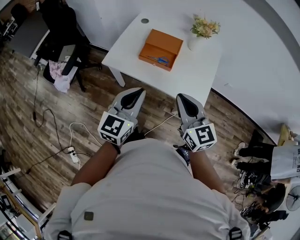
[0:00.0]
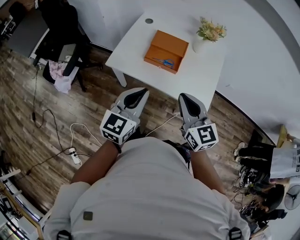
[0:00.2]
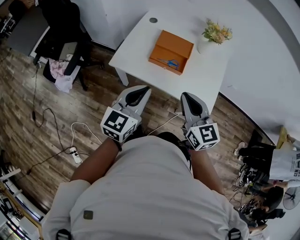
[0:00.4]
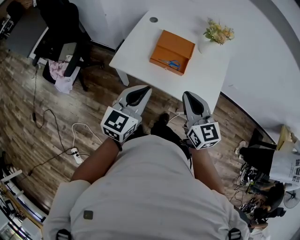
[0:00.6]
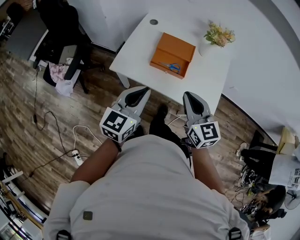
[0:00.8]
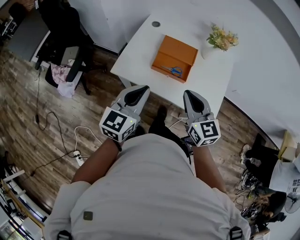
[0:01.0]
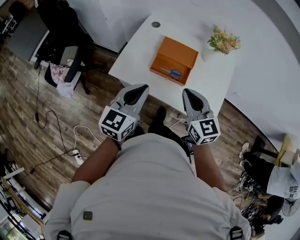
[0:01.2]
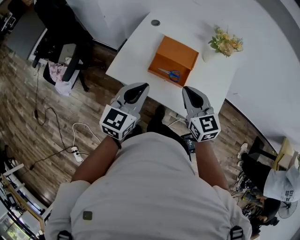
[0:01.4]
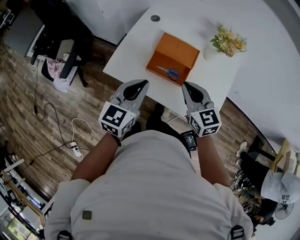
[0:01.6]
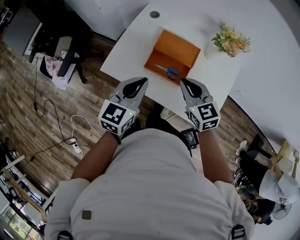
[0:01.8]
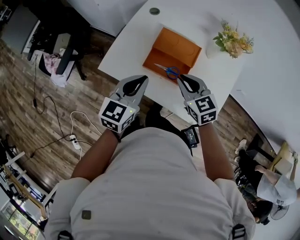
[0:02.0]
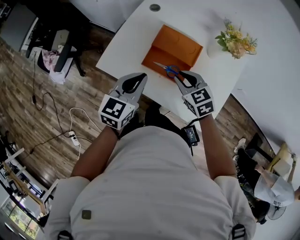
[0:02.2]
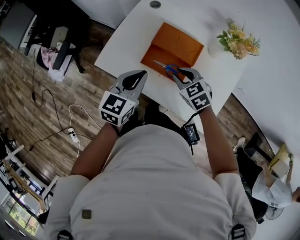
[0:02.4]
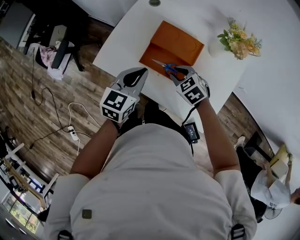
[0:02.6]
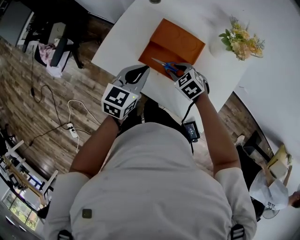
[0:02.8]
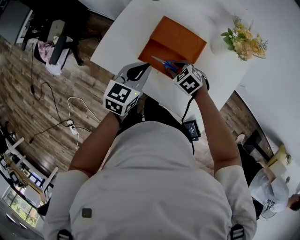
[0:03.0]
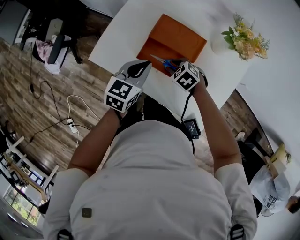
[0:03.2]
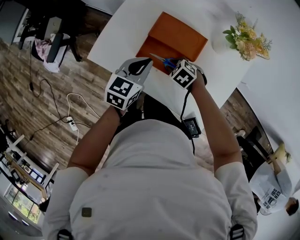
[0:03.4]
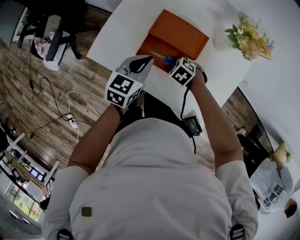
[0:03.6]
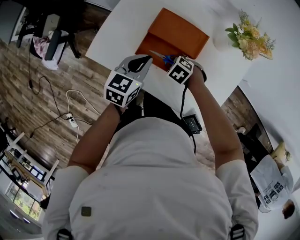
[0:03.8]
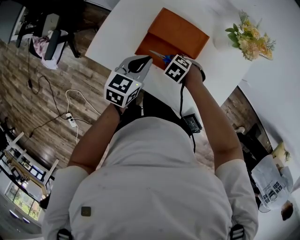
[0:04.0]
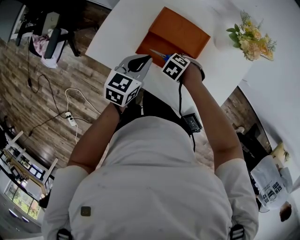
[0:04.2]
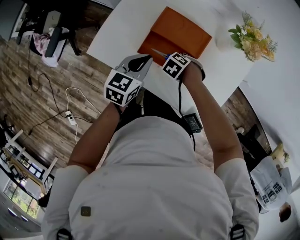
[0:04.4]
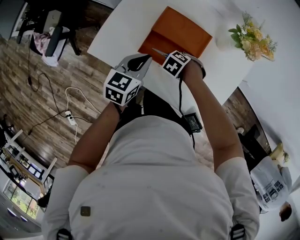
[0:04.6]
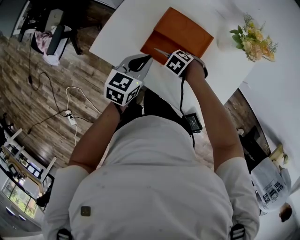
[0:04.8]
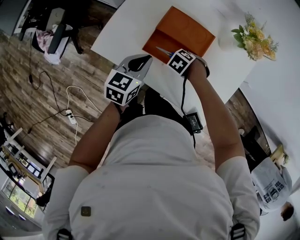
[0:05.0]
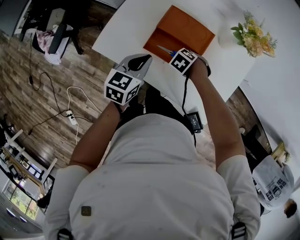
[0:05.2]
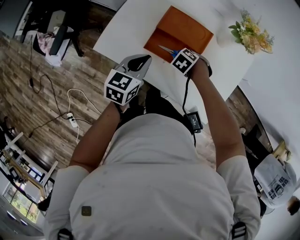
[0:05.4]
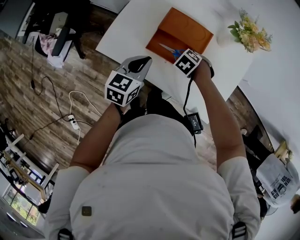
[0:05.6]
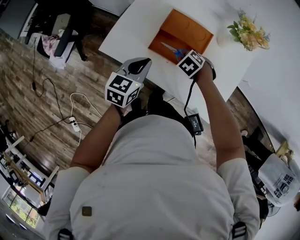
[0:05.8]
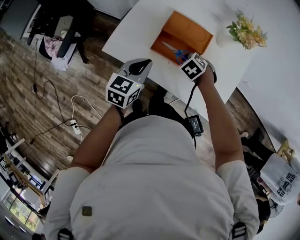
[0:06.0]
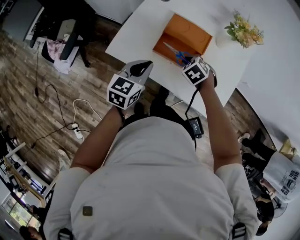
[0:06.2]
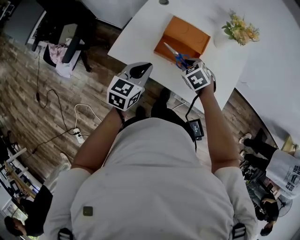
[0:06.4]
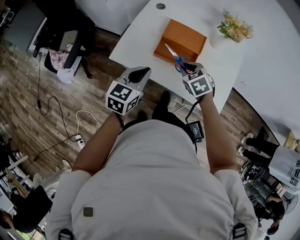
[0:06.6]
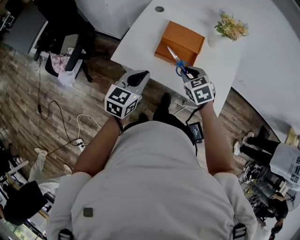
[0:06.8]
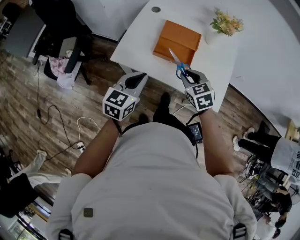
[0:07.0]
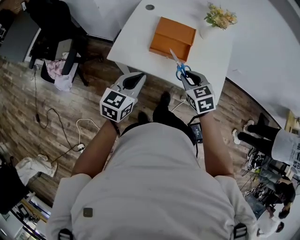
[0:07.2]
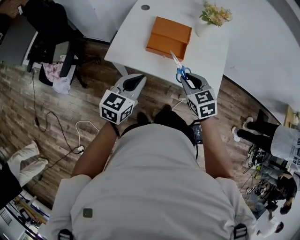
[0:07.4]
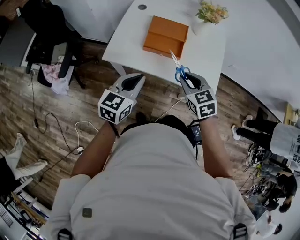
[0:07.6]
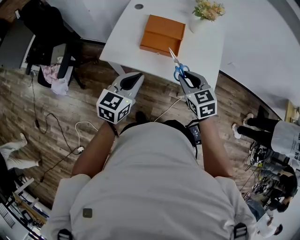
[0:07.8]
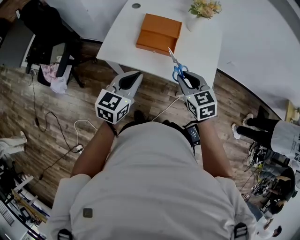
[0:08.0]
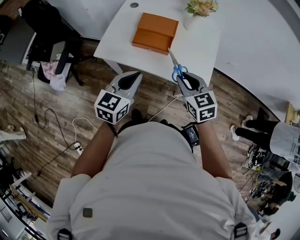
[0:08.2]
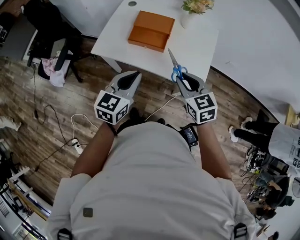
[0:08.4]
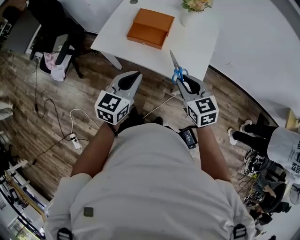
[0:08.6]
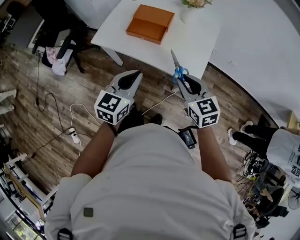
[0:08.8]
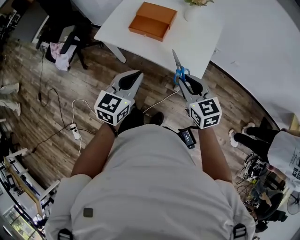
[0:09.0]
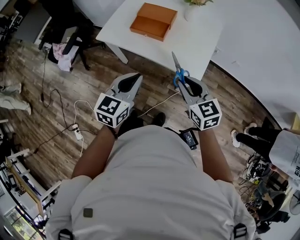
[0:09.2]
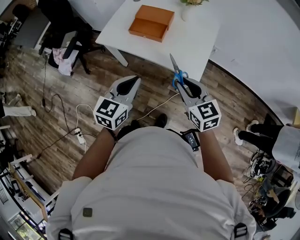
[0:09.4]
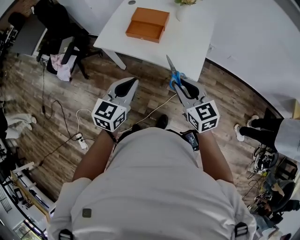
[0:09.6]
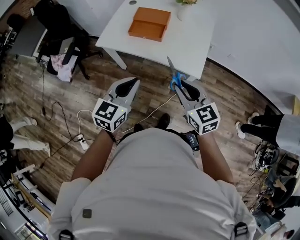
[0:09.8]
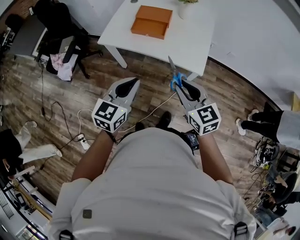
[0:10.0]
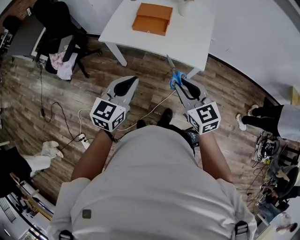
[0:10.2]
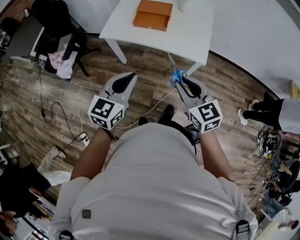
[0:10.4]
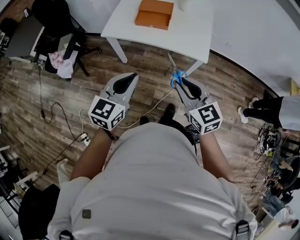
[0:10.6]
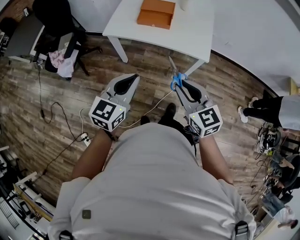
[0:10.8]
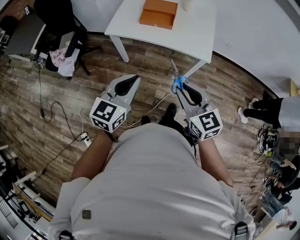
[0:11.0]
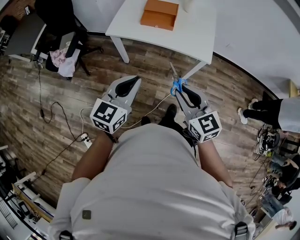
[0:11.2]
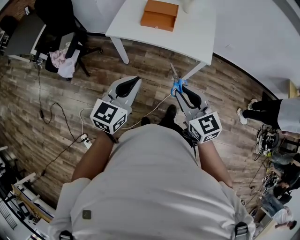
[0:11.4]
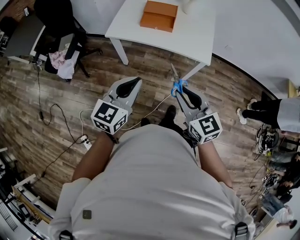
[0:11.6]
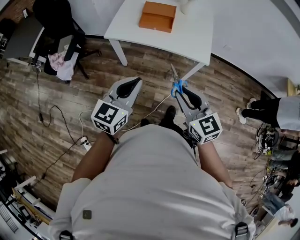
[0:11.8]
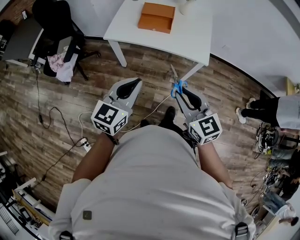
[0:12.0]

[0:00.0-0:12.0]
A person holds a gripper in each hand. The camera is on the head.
0:00.0 to 0:01.6: The two grippers go roughly 20 cm forward.
0:01.6 to 0:03.0: The left gripper goes about 15 cm downward, forward and to the right. The right gripper travels downward by about 25 cm, angles its fingers downward, by about 40 degrees, and opens up.
0:03.0 to 0:04.4: The right gripper is displaced downward by approximately 5 cm, and changes its angle by some 20 degrees.
0:04.4 to 0:06.0: The left gripper shifts by some 10 cm, while the right gripper heads upward, covering roughly 10 cm.
0:06.0 to 0:07.6: The right gripper moves approximately 30 cm, and tilts its fingers some 30 degrees upward. The left gripper moves approximately 20 cm.
0:07.6 to 0:09.0: The grippers both shift to the right and backward by some 20 cm.
0:09.0 to 0:10.4: The right gripper travels backward and to the left by approximately 20 cm. Meanwhile the left gripper is displaced to the left and backward by approximately 15 cm.
0:10.4 to 0:12.0: The right gripper shifts about 10 cm backward and to the left. The left gripper moves approximately 5 cm.

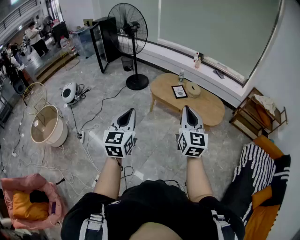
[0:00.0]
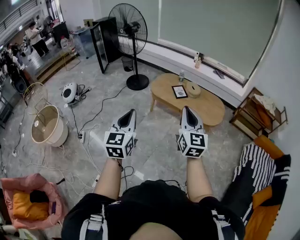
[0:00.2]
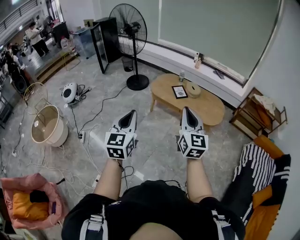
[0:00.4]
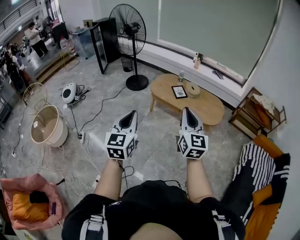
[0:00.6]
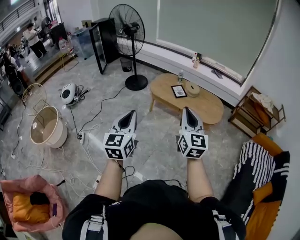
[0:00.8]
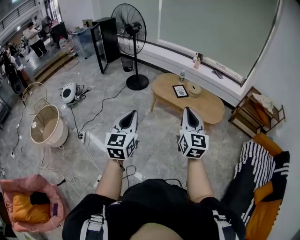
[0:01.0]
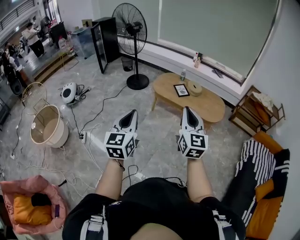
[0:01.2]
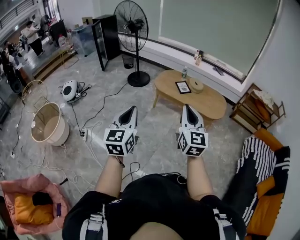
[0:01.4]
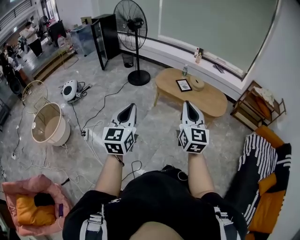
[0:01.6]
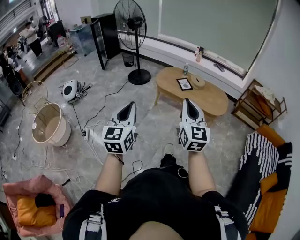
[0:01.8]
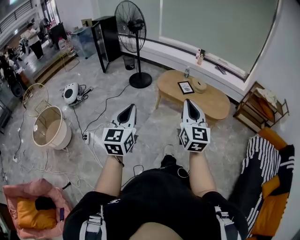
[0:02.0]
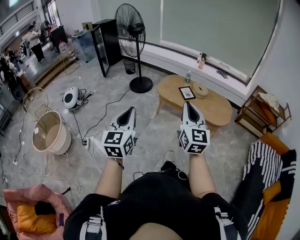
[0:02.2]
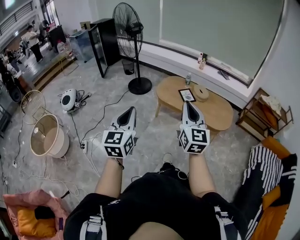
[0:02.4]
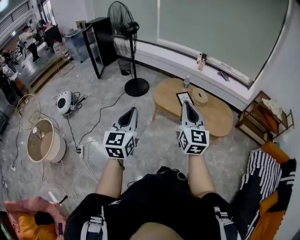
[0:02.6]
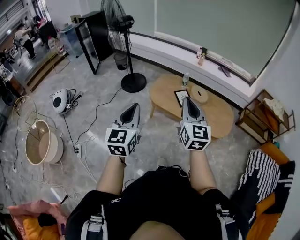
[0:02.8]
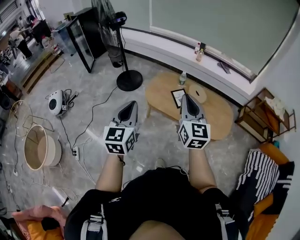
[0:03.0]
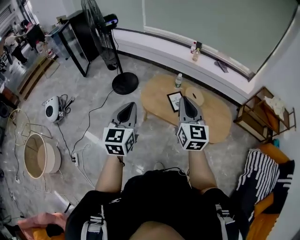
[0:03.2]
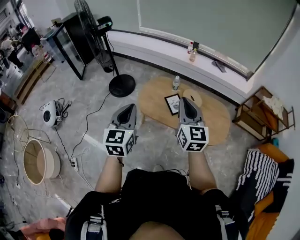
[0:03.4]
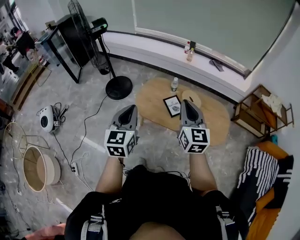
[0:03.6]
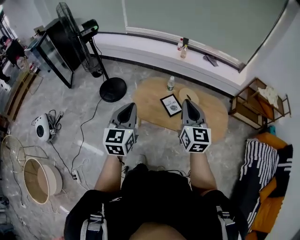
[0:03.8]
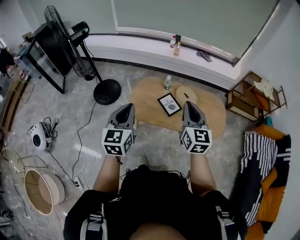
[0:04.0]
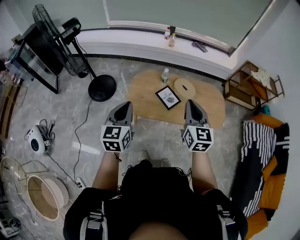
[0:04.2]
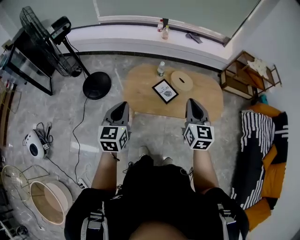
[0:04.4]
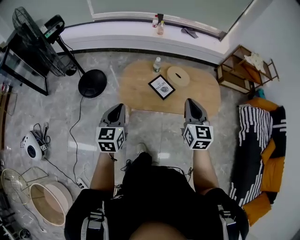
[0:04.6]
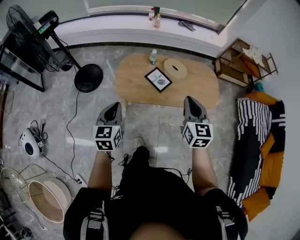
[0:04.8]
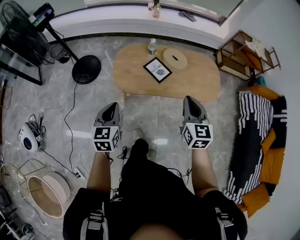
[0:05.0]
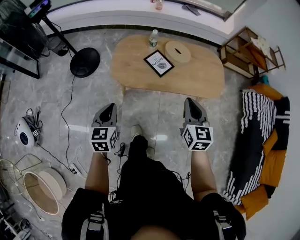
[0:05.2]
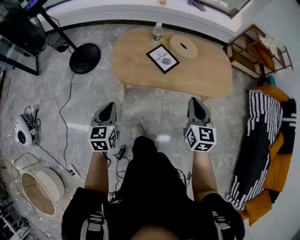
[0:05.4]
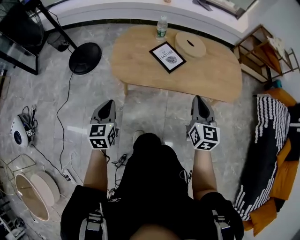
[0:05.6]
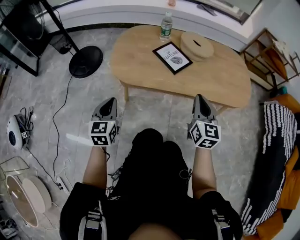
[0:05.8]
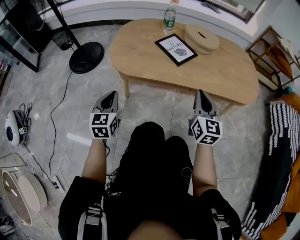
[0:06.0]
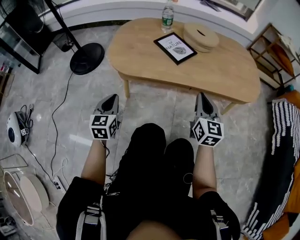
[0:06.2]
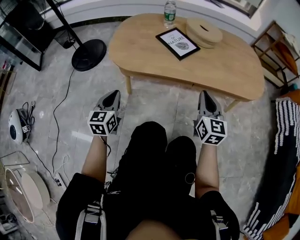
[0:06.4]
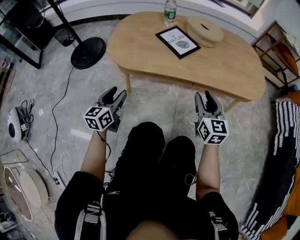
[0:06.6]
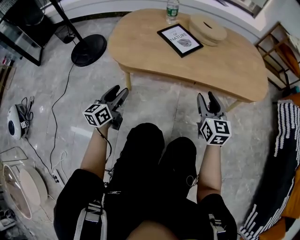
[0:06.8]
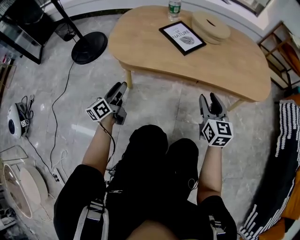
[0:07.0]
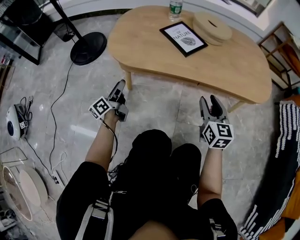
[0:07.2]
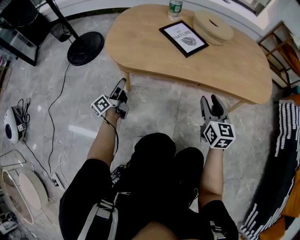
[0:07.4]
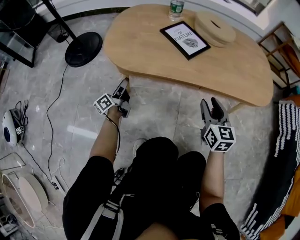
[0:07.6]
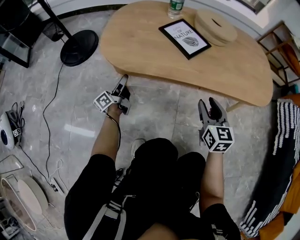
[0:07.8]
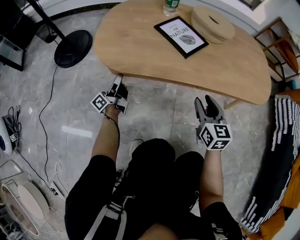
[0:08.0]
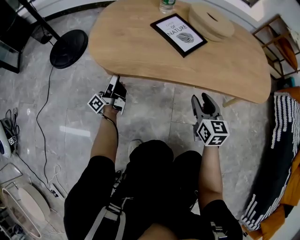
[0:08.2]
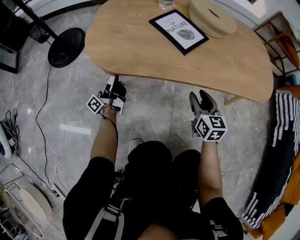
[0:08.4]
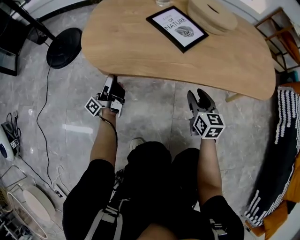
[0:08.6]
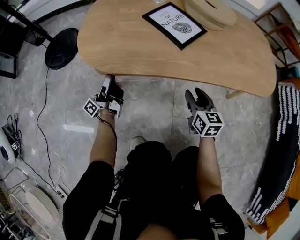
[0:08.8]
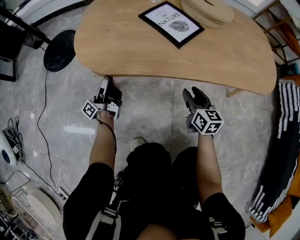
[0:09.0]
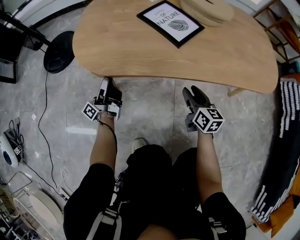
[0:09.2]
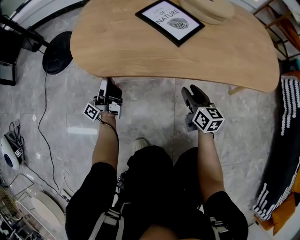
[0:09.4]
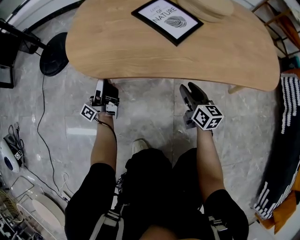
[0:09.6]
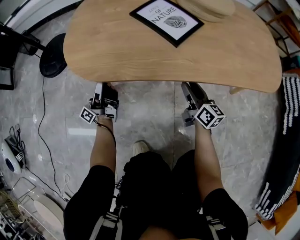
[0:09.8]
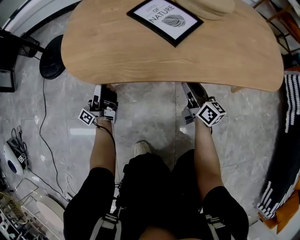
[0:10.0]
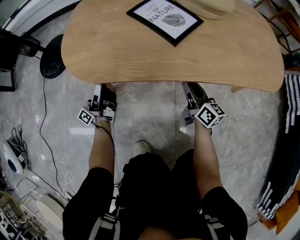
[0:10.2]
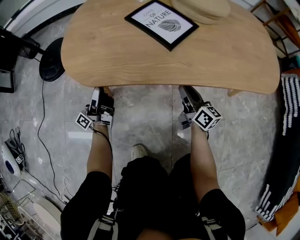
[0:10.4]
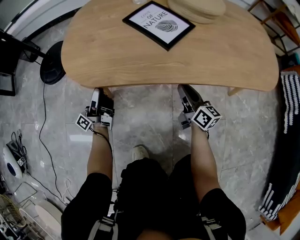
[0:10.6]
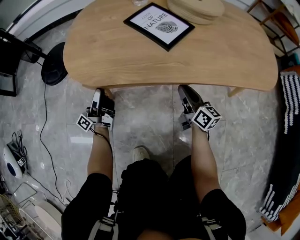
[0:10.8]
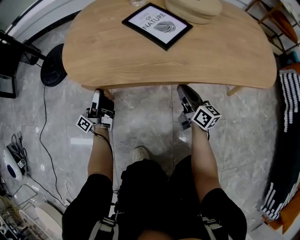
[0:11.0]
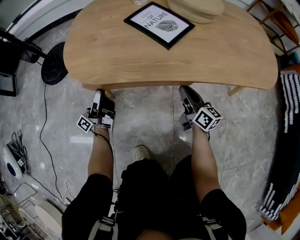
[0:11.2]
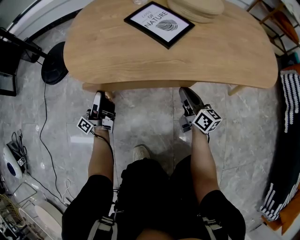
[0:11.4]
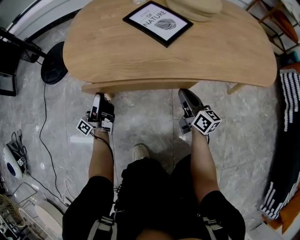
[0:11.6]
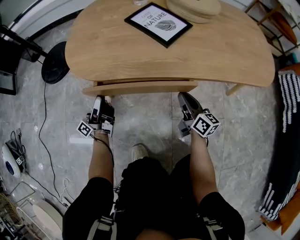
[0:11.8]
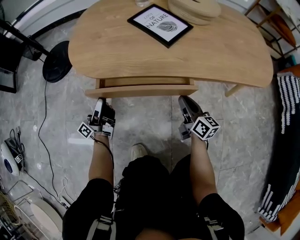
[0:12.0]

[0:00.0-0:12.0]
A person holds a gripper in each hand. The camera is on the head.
0:00.0 to 0:01.6: The two grippers go roughly 15 cm to the left and backward.
0:01.6 to 0:03.0: Both grippers are carried forward, roughly 50 cm.
0:03.0 to 0:04.4: Both grippers travel together forward and downward, some 25 cm. The left gripper changes its angle by some 20 degrees; the right gripper swivels about 30 degrees.
0:04.4 to 0:06.0: The grippers both shift downward by approximately 50 cm.
0:06.0 to 0:07.6: The right gripper shifts roughly 10 cm downward, and opens up. The left gripper goes roughly 25 cm downward and forward, rolls counterclockwise, seen from behind, by roughly 60 degrees, and opens its fingers.
0:07.6 to 0:09.0: The left gripper turns by approximately 30 degrees, and closes its fingers. Meanwhile the right gripper is displaced downward and forward by roughly 15 cm.
0:09.0 to 0:10.4: The right gripper swivels about 30 degrees, and closes up.
0:10.4 to 0:12.0: The two grippers go roughly 5 cm backward.
